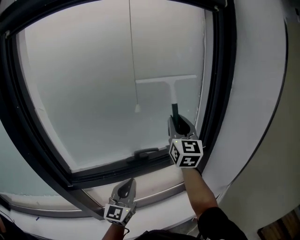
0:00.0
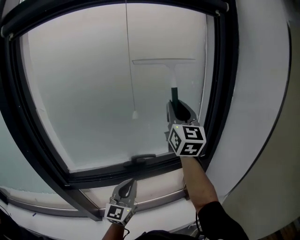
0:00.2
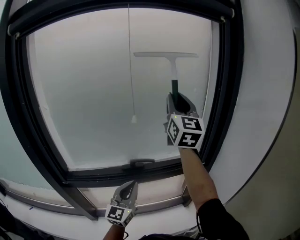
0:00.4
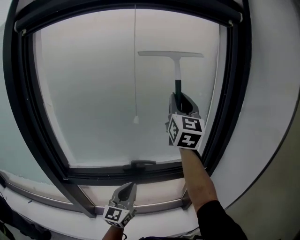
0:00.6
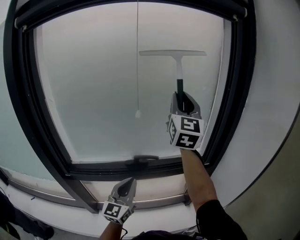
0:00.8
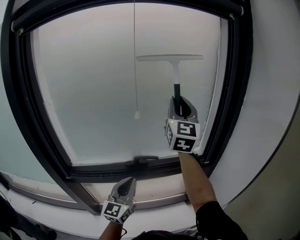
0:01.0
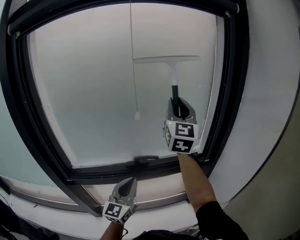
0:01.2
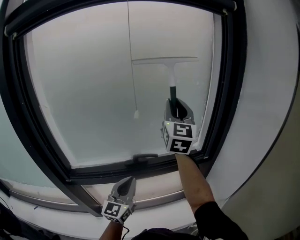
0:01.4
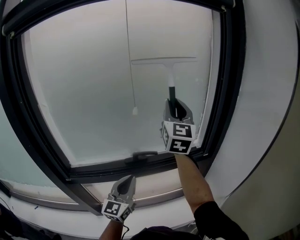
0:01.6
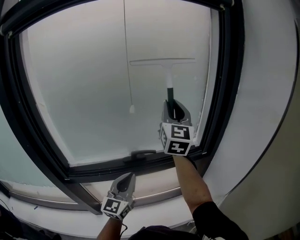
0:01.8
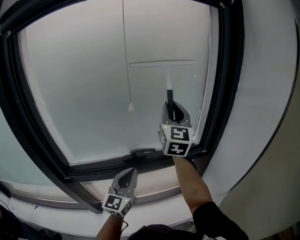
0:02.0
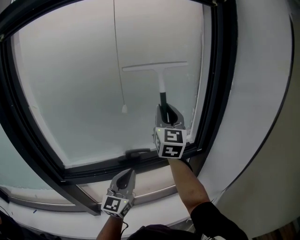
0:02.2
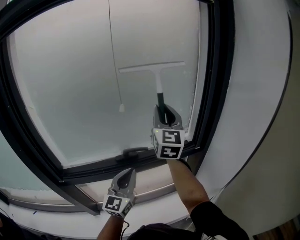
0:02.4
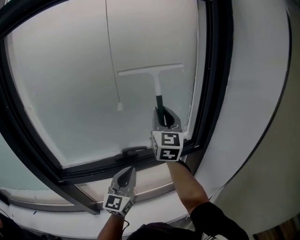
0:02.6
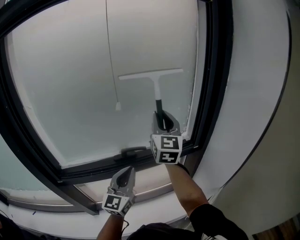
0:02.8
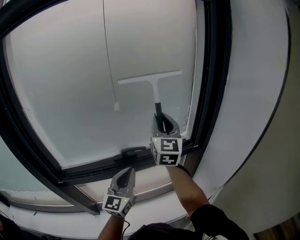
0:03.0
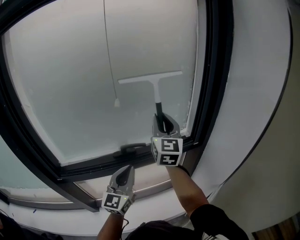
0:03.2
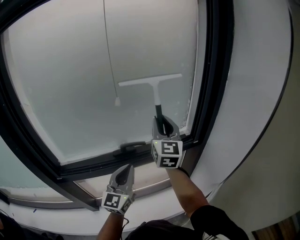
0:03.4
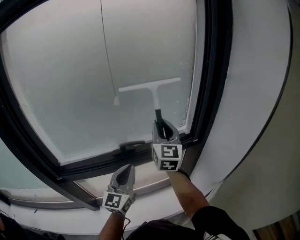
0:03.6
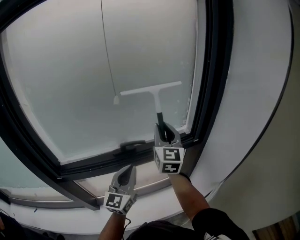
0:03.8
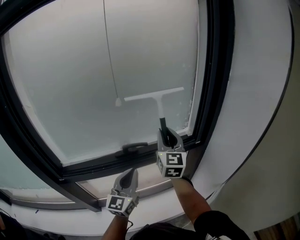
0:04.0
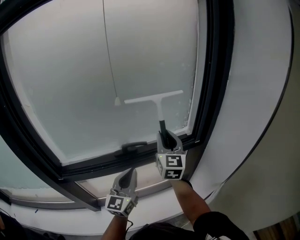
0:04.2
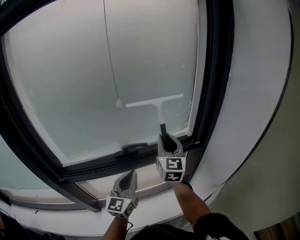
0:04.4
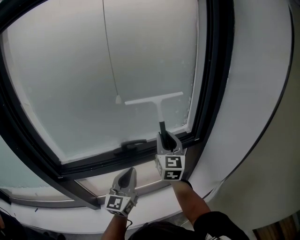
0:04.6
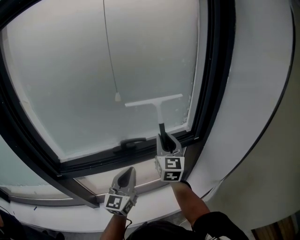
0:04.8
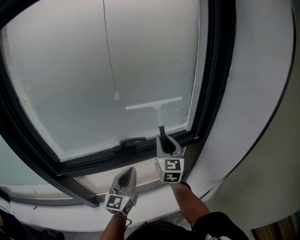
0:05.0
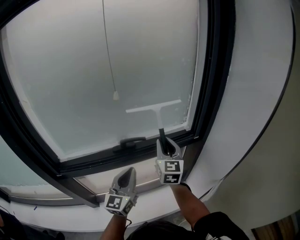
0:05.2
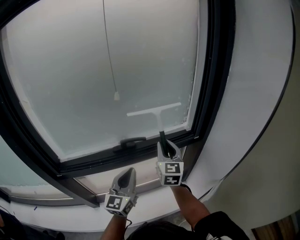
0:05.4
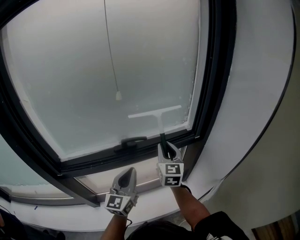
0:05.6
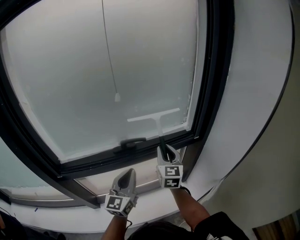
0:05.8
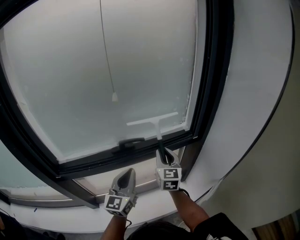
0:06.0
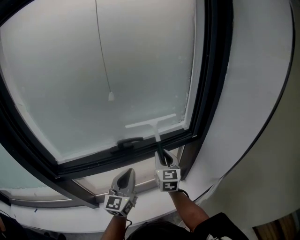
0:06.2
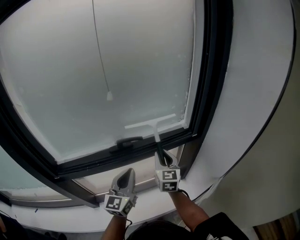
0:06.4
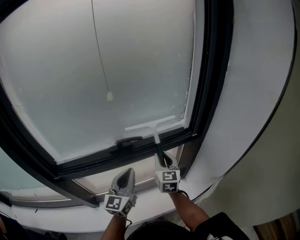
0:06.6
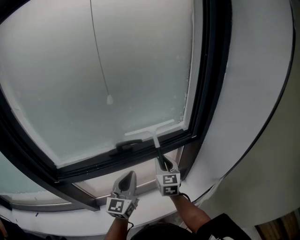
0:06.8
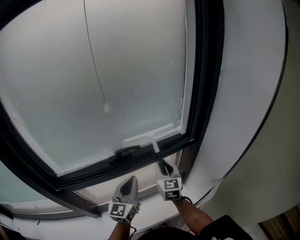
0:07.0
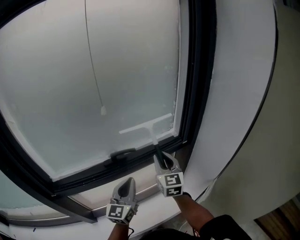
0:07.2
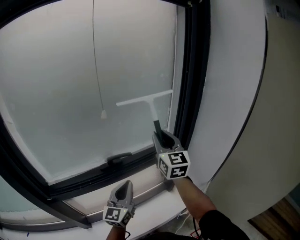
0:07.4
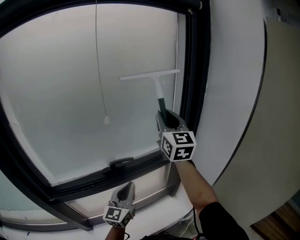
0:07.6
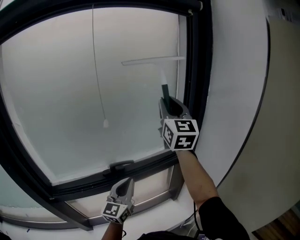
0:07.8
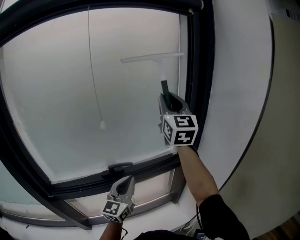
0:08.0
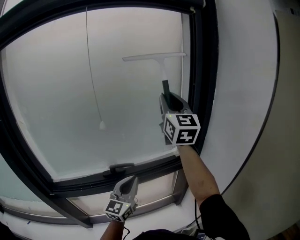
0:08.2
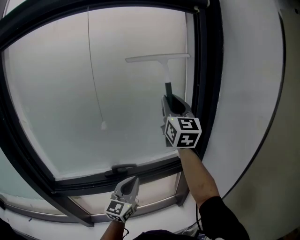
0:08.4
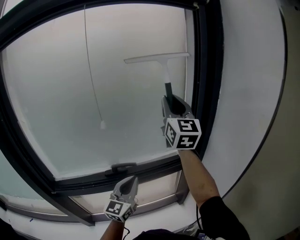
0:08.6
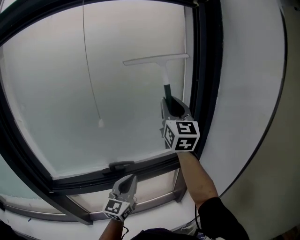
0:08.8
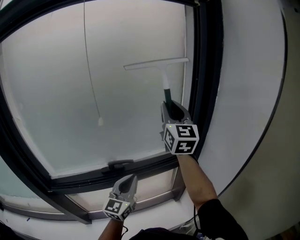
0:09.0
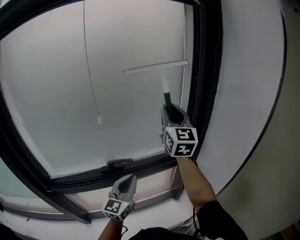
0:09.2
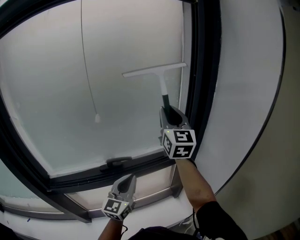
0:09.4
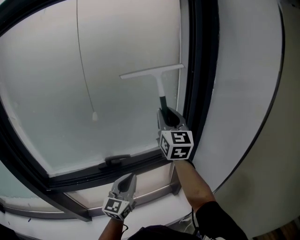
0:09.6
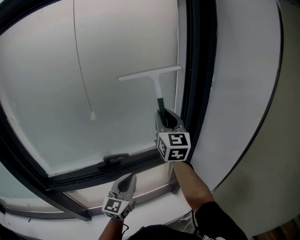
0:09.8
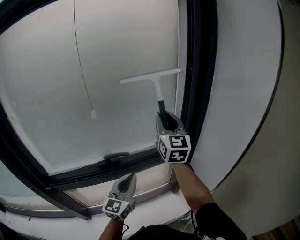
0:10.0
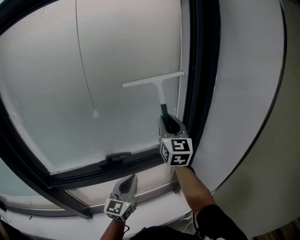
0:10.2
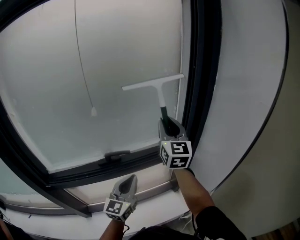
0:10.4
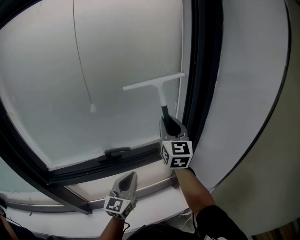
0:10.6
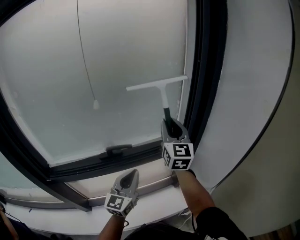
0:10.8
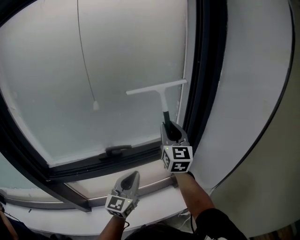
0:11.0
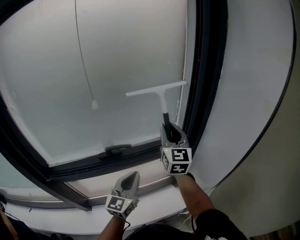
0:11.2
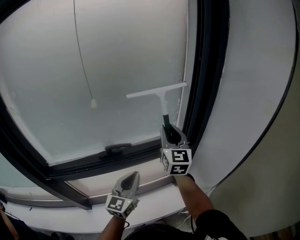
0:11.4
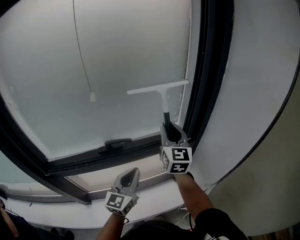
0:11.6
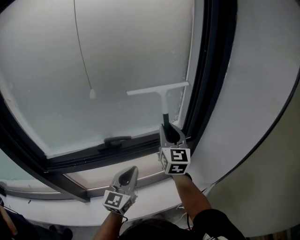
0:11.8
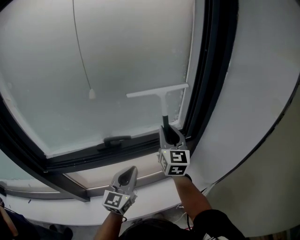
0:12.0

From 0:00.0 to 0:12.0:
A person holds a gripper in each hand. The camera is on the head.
From 0:00.0 to 0:01.6: The right gripper travels upward by approximately 5 cm.
From 0:01.6 to 0:03.0: The right gripper travels downward by some 10 cm.
From 0:03.0 to 0:04.4: The right gripper travels downward by some 10 cm.
From 0:04.4 to 0:06.0: The right gripper shifts about 10 cm downward.
From 0:06.0 to 0:07.6: The right gripper goes about 30 cm upward, and rotates about 20 degrees.
From 0:07.6 to 0:09.0: The left gripper ends up approximately 5 cm from where it was, while the right gripper is displaced forward by some 5 cm.
From 0:09.0 to 0:10.4: The right gripper moves downward, about 10 cm.
From 0:10.4 to 0:12.0: The right gripper heads downward, covering approximately 10 cm.

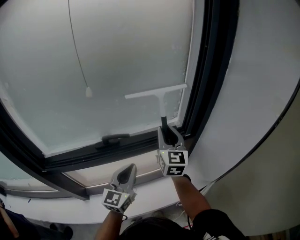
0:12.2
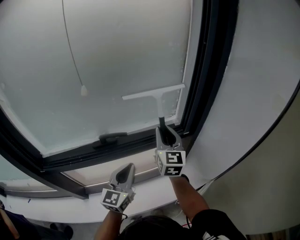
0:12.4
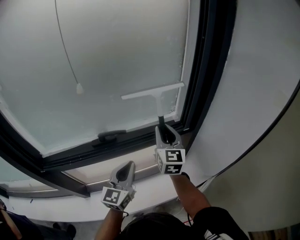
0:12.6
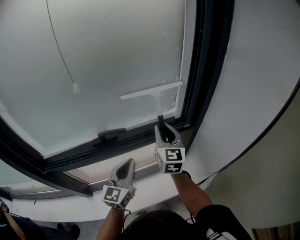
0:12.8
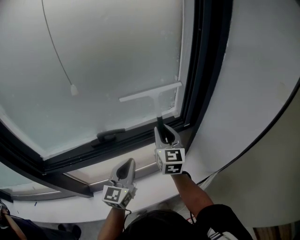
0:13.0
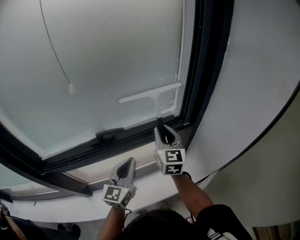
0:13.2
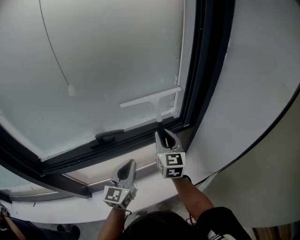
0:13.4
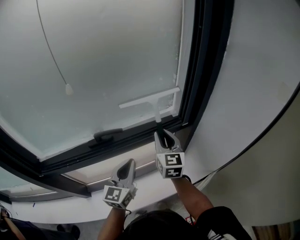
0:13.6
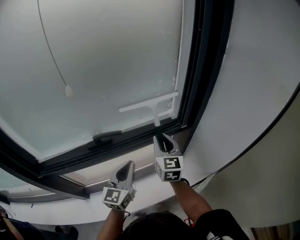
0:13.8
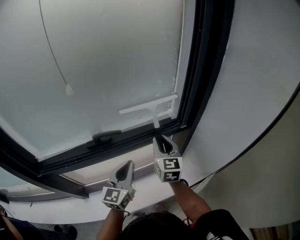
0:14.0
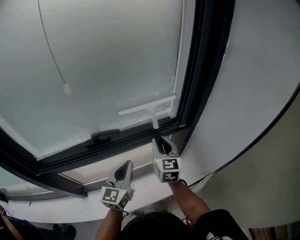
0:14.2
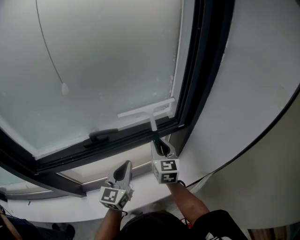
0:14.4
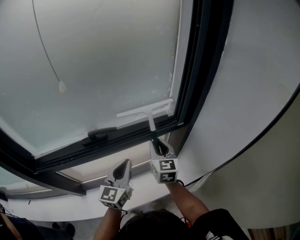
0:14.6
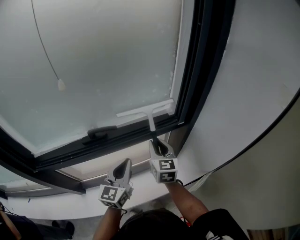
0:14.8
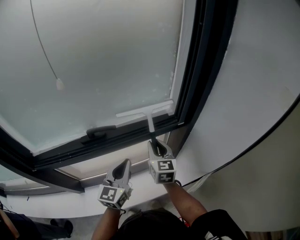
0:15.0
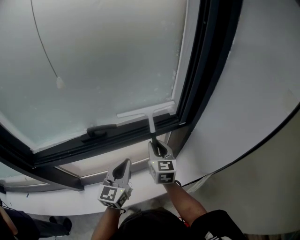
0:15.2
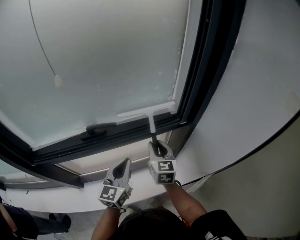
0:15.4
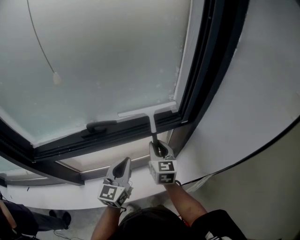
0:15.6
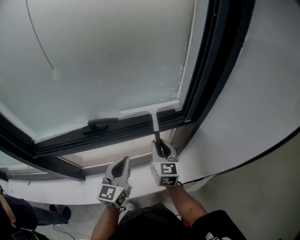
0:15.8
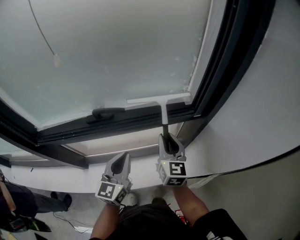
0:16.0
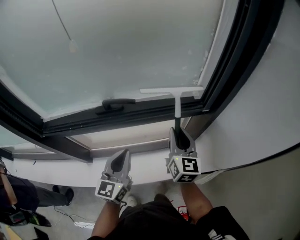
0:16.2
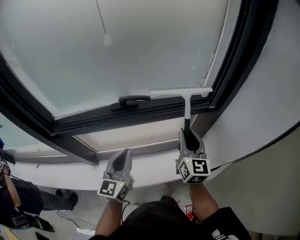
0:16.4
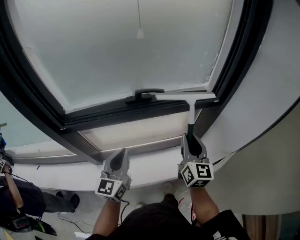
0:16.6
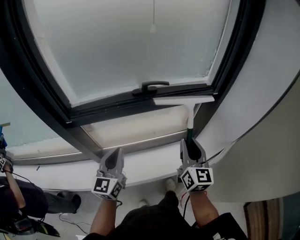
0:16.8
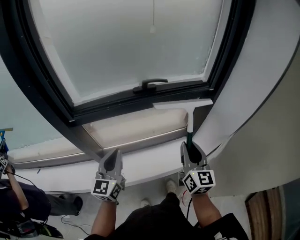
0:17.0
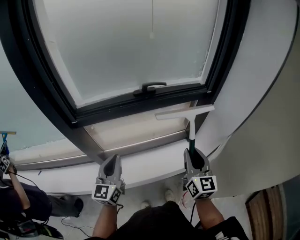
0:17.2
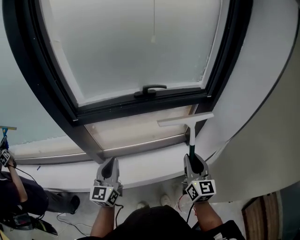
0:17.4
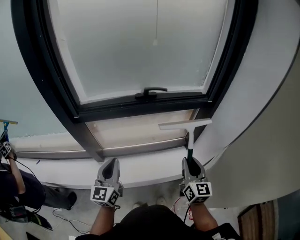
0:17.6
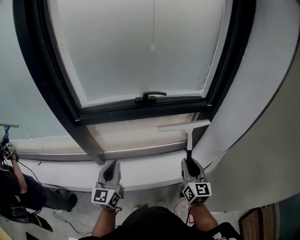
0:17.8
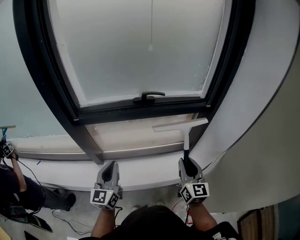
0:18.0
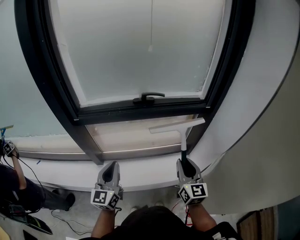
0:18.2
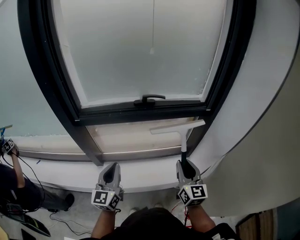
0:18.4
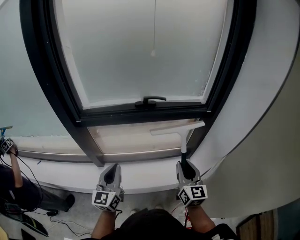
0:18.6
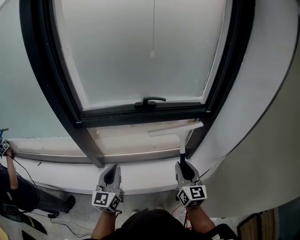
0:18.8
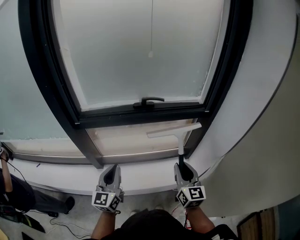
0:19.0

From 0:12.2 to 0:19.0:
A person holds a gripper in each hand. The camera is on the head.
From 0:12.2 to 0:13.6: The right gripper travels downward by some 10 cm.
From 0:13.6 to 0:15.0: The right gripper travels downward by some 5 cm.
From 0:15.0 to 0:16.2: The left gripper shifts by some 5 cm.
From 0:16.2 to 0:17.6: The right gripper travels backward by some 25 cm; the left gripper moves backward and to the left, about 25 cm.
From 0:17.6 to 0:19.0: There are only small adjustments of the grippers.

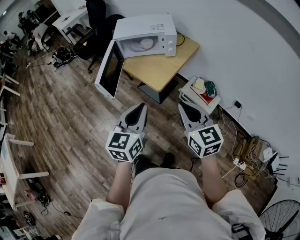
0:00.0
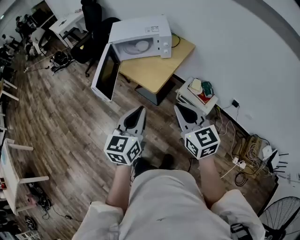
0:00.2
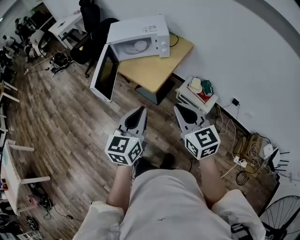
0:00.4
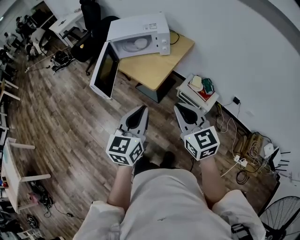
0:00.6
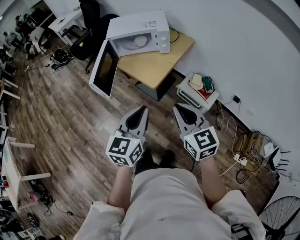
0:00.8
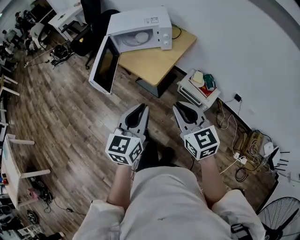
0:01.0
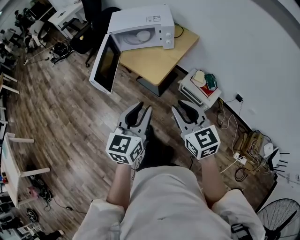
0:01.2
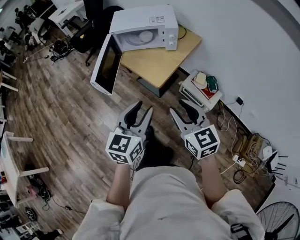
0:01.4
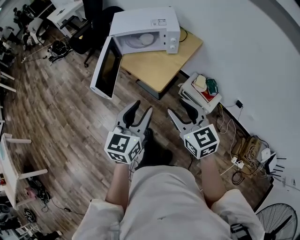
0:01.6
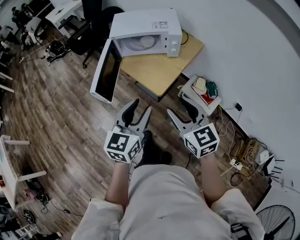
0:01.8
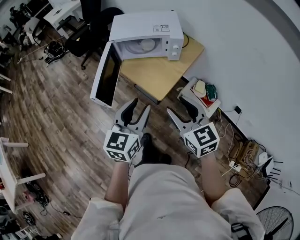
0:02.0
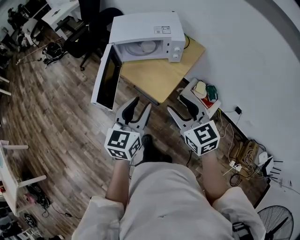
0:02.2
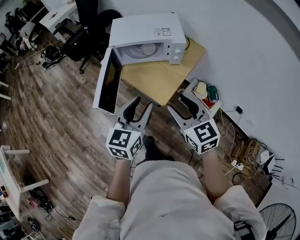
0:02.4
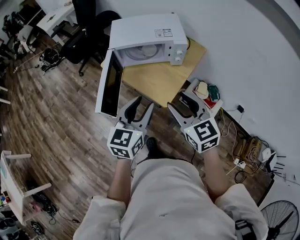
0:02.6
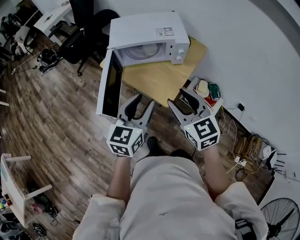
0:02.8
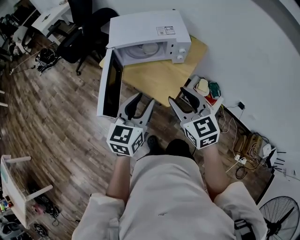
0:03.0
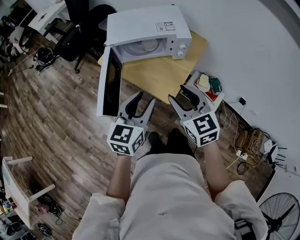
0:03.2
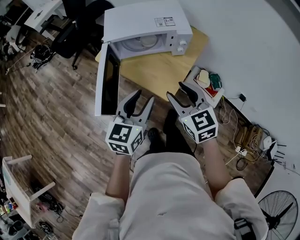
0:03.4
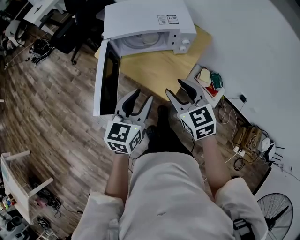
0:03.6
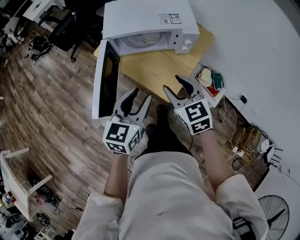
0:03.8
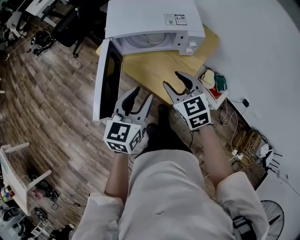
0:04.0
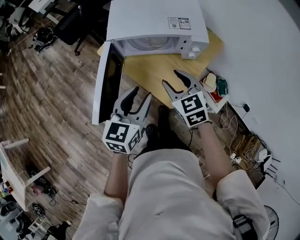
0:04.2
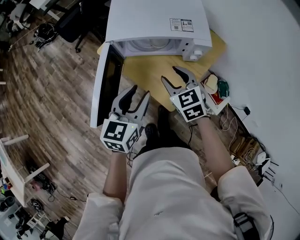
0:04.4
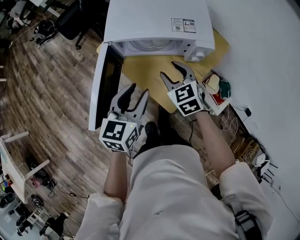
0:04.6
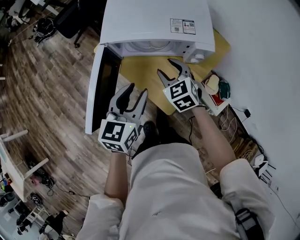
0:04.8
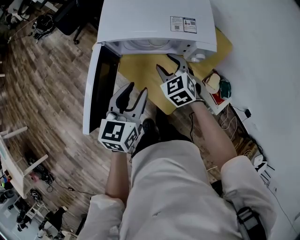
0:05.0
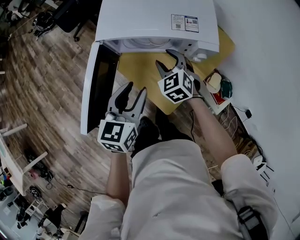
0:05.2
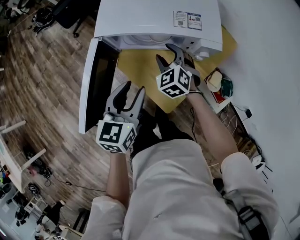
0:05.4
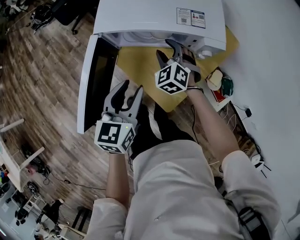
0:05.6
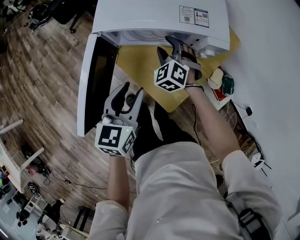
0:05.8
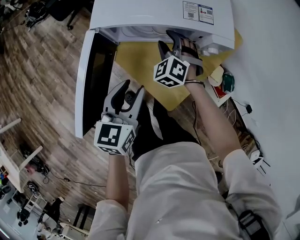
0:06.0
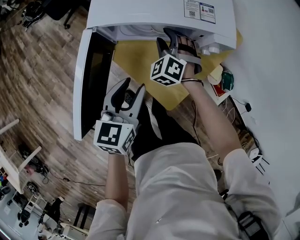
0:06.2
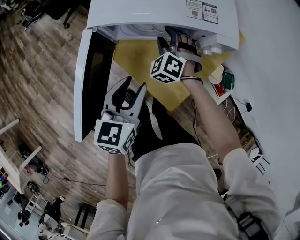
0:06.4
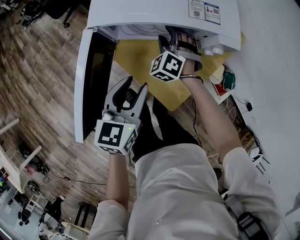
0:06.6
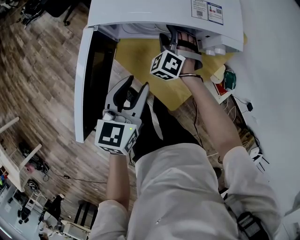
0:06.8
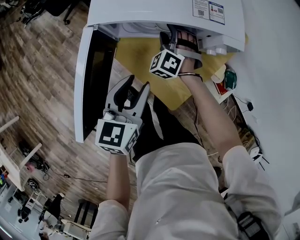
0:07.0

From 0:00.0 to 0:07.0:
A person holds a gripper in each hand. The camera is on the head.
From 0:00.0 to 0:01.4: The left gripper opens up; the right gripper opens up.
From 0:01.4 to 0:02.8: The two grippers go roughly 20 cm forward.
From 0:02.8 to 0:04.2: The right gripper moves forward and downward, approximately 20 cm, while the left gripper travels forward and downward by about 15 cm.
From 0:04.2 to 0:05.6: The left gripper heads forward and downward, covering approximately 10 cm. The right gripper moves forward and downward, about 20 cm, and changes its angle by approximately 30 degrees.
From 0:05.6 to 0:07.0: The right gripper shifts approximately 10 cm downward and forward, and swivels some 20 degrees.
